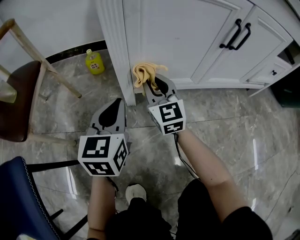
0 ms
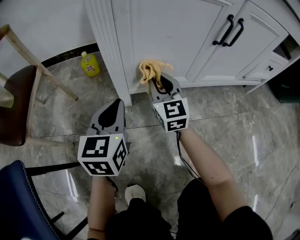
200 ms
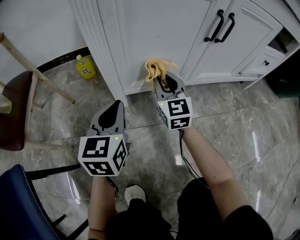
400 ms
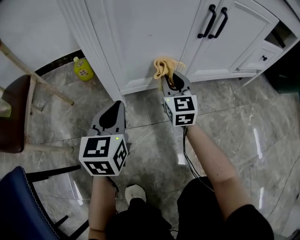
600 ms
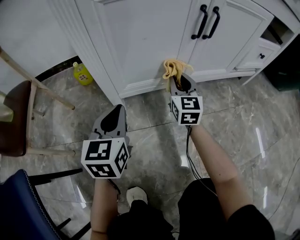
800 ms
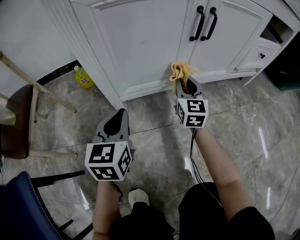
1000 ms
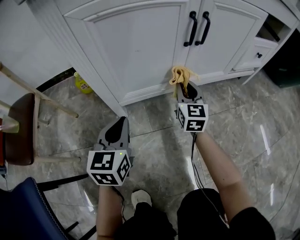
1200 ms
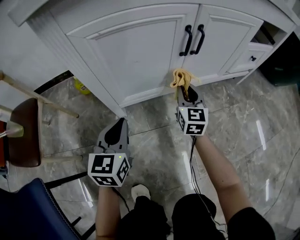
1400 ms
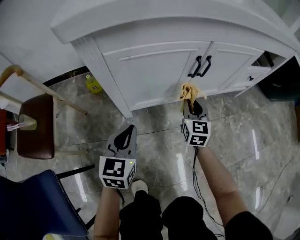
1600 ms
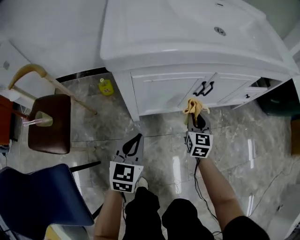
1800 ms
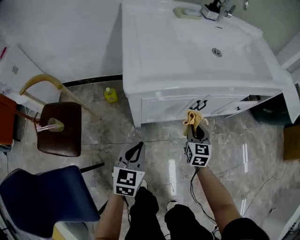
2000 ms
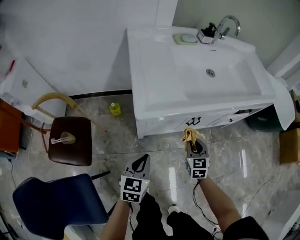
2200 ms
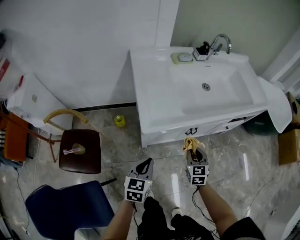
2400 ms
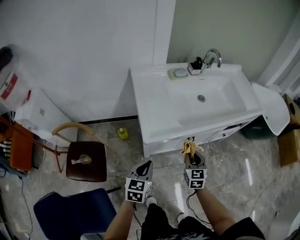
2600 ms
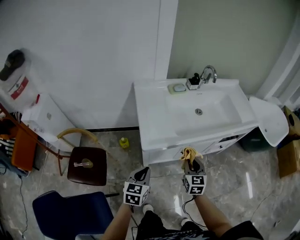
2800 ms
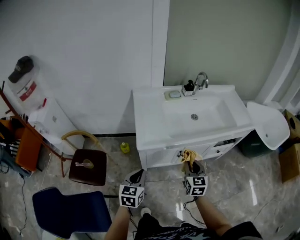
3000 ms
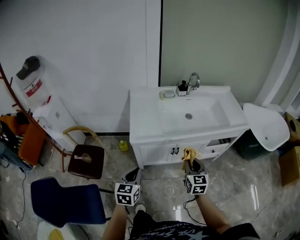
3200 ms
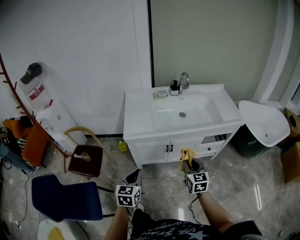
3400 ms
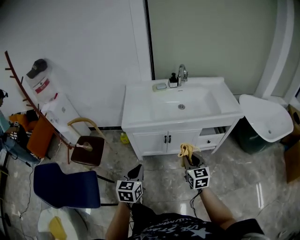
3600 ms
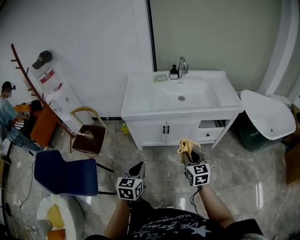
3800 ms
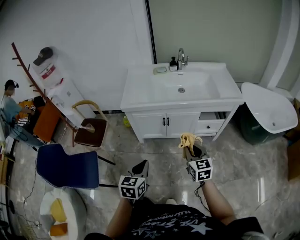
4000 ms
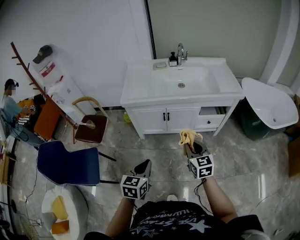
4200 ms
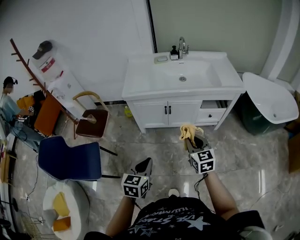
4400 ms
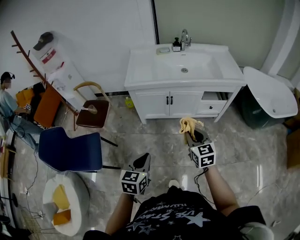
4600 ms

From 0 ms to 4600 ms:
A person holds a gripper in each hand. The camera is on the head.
From 0 ms to 1600 ms: The right gripper is displaced to the right by approximately 25 cm, and swivels roughly 30 degrees. The left gripper goes some 10 cm upward and to the right.
From 1600 ms to 3000 ms: Both grippers move upward, about 50 cm.
From 3000 ms to 4600 ms: The two grippers go approximately 35 cm backward and to the right. The right gripper changes its angle by some 20 degrees.

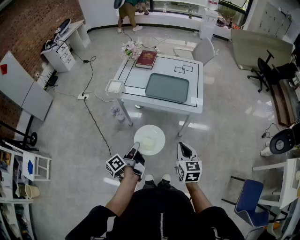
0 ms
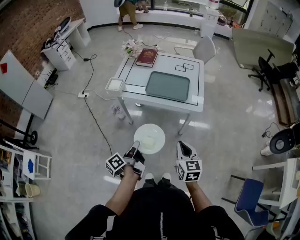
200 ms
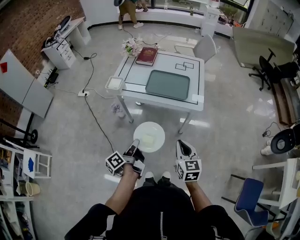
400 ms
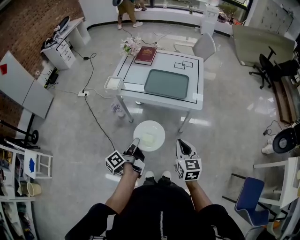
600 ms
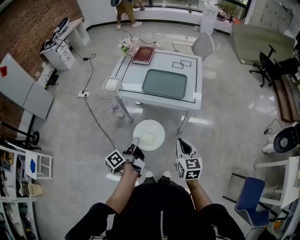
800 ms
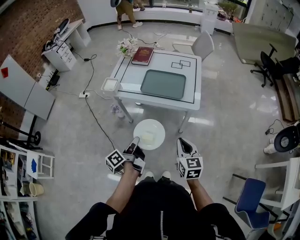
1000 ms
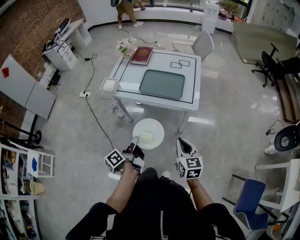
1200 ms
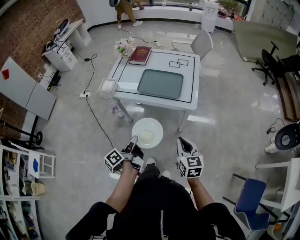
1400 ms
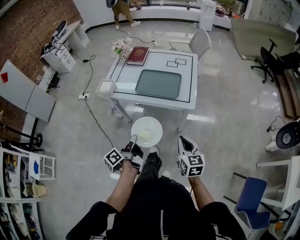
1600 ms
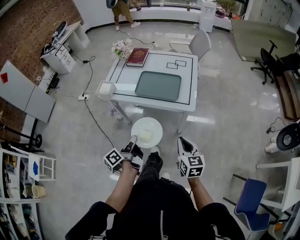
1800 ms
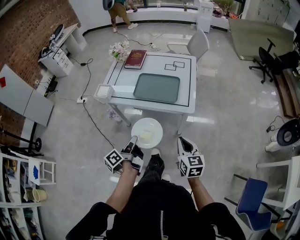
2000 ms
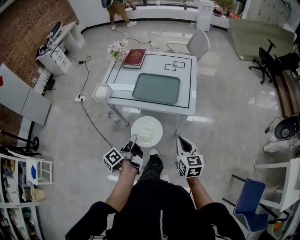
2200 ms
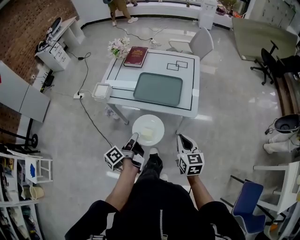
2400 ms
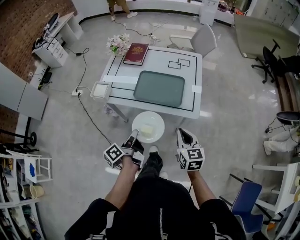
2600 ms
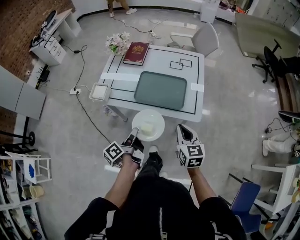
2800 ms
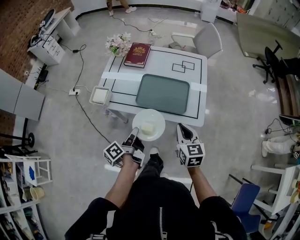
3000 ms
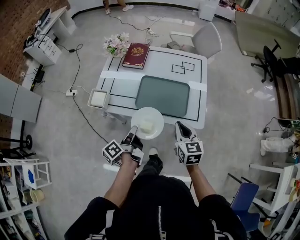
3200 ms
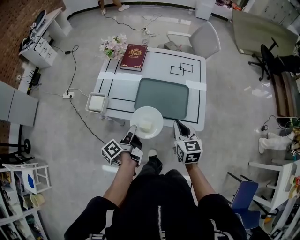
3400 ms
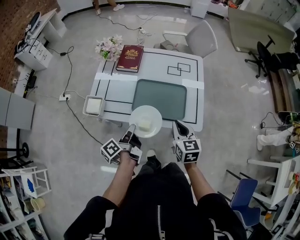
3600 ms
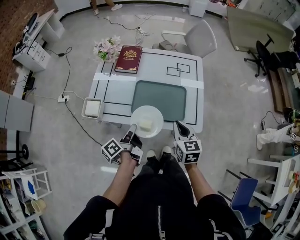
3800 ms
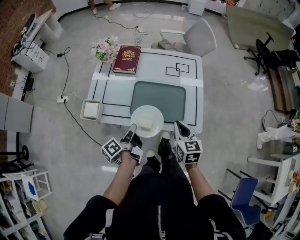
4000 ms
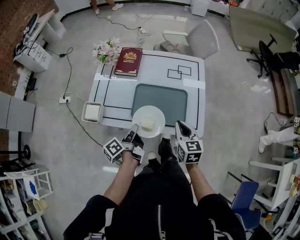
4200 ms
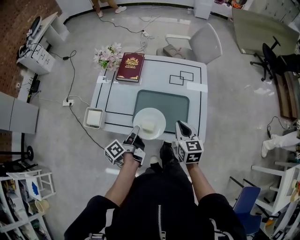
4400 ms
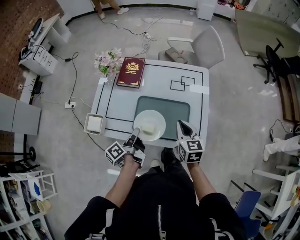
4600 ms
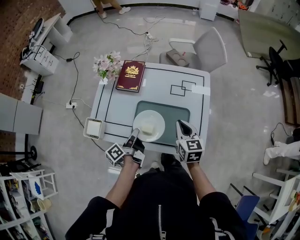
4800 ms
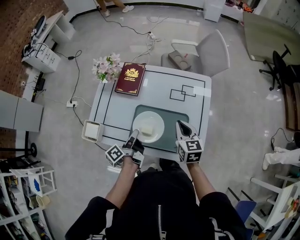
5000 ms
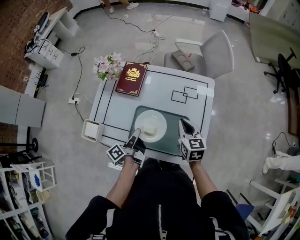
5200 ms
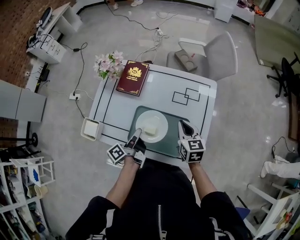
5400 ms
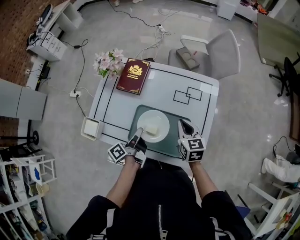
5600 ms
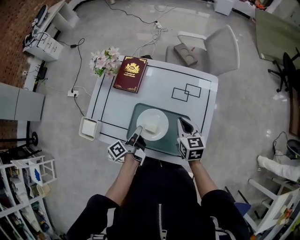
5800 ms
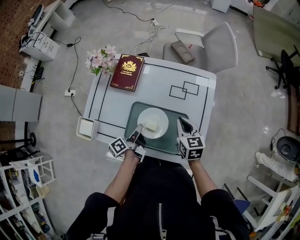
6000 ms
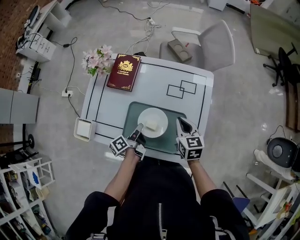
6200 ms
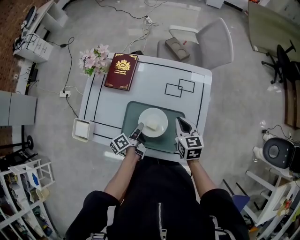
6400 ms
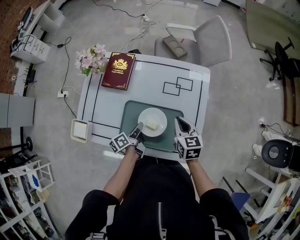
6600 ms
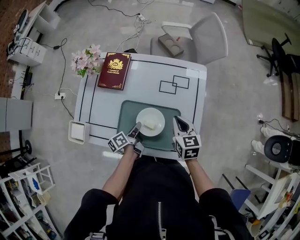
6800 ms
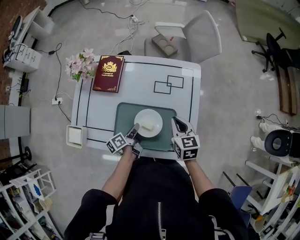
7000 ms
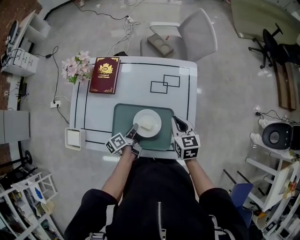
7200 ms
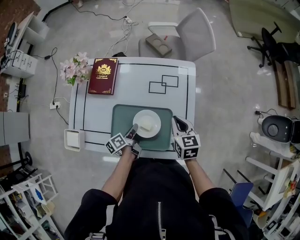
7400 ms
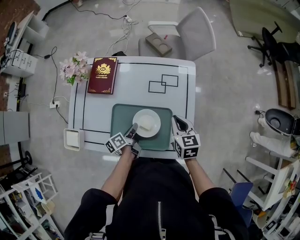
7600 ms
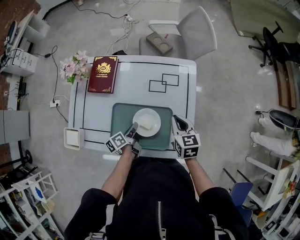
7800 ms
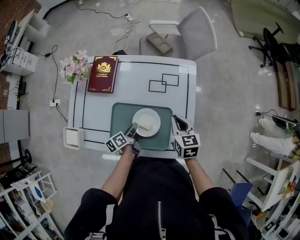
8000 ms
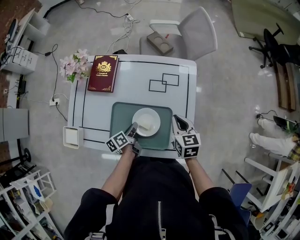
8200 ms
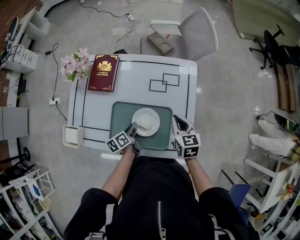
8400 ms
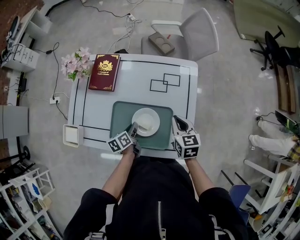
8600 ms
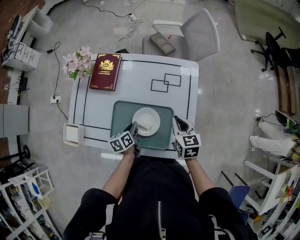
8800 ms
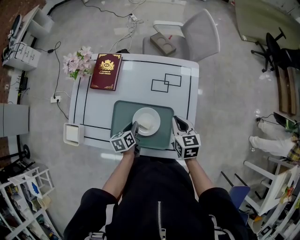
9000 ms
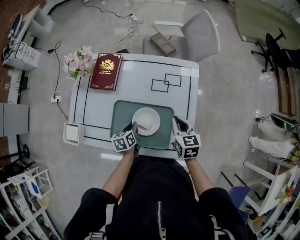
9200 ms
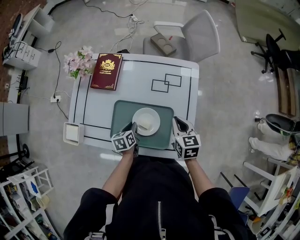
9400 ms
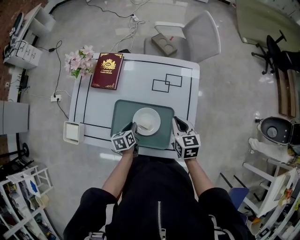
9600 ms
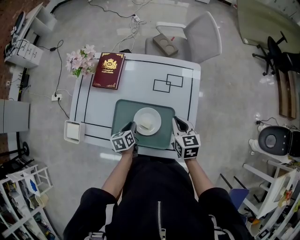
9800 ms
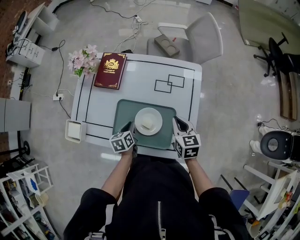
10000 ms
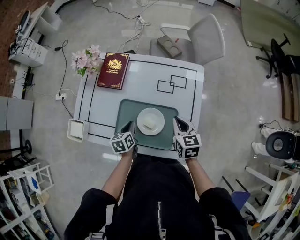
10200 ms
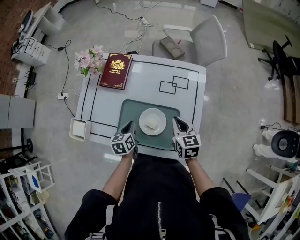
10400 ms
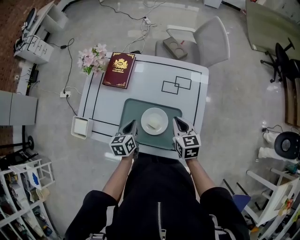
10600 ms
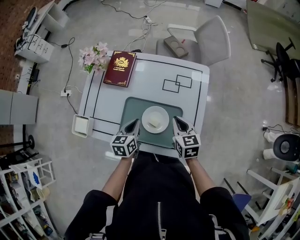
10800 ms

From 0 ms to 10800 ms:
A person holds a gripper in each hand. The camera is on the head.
From 0 ms to 1600 ms: Both grippers travel together to the right, some 10 cm.
From 1600 ms to 3000 ms: The grippers both shift forward by roughly 20 cm.
From 3000 ms to 4600 ms: Both grippers move forward, some 20 cm.
From 4600 ms to 6200 ms: The right gripper shifts roughly 15 cm forward and downward, while the left gripper shifts about 15 cm forward, downward and to the right.
From 6200 ms to 7800 ms: The right gripper goes about 5 cm to the right. Meanwhile the left gripper shifts by roughly 5 cm.
From 7800 ms to 9200 ms: The left gripper changes its angle by about 30 degrees.
From 9200 ms to 10800 ms: The left gripper moves upward, approximately 10 cm.

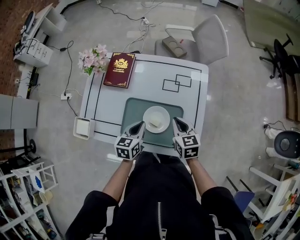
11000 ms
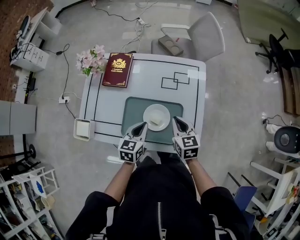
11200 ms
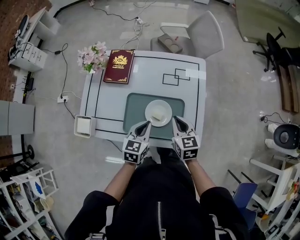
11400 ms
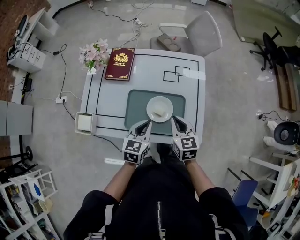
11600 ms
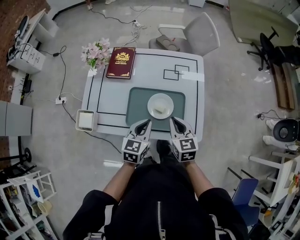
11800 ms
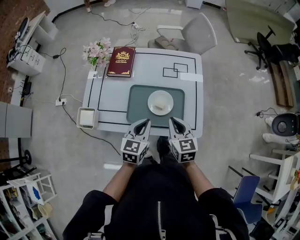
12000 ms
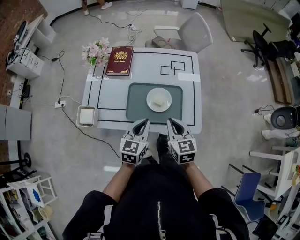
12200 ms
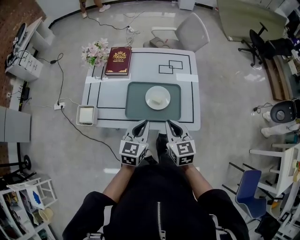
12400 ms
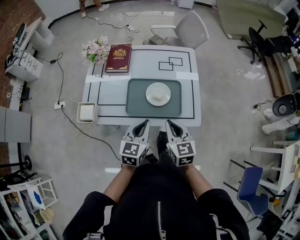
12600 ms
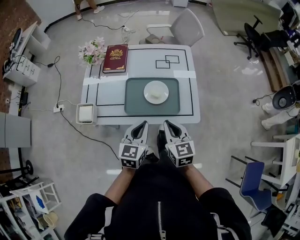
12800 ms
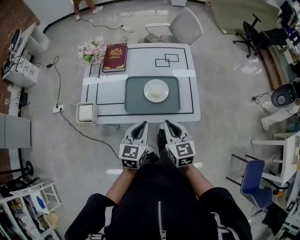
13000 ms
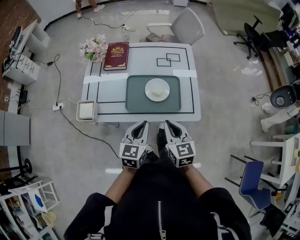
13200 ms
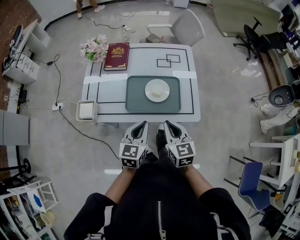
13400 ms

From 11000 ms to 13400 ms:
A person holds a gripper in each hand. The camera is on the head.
From 11000 ms to 12200 ms: The left gripper goes approximately 15 cm backward and upward. The right gripper moves backward, roughly 15 cm.
From 12200 ms to 13400 ms: Both grippers move backward, about 10 cm.

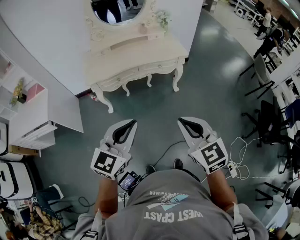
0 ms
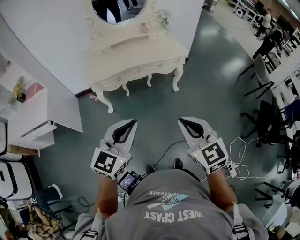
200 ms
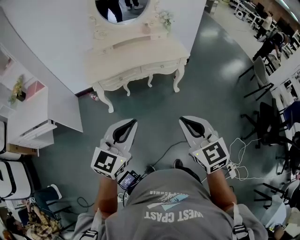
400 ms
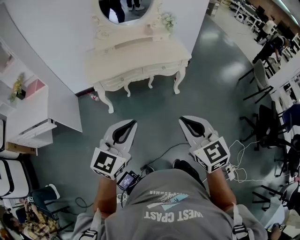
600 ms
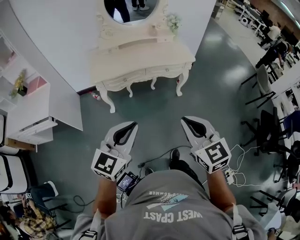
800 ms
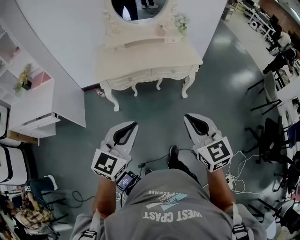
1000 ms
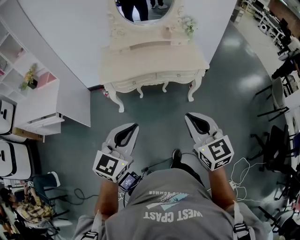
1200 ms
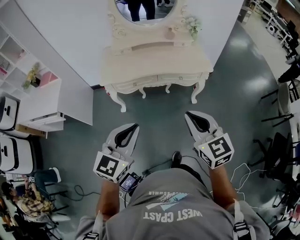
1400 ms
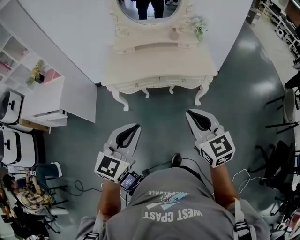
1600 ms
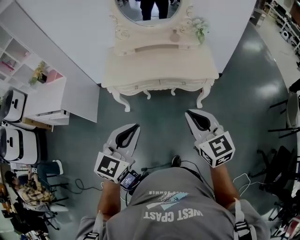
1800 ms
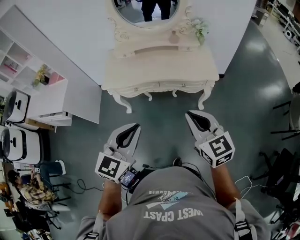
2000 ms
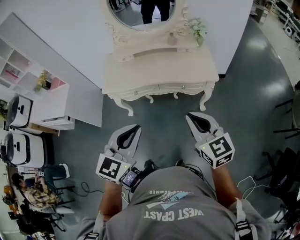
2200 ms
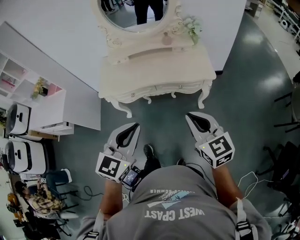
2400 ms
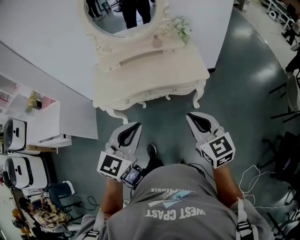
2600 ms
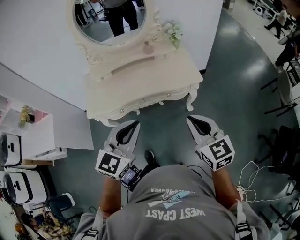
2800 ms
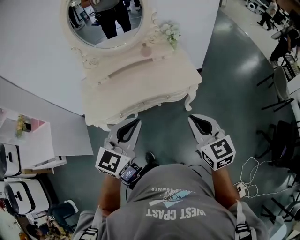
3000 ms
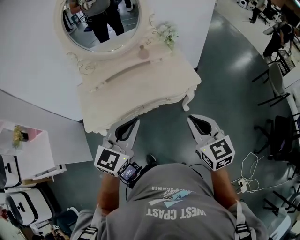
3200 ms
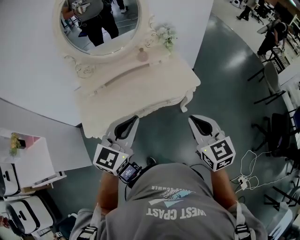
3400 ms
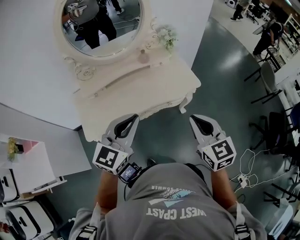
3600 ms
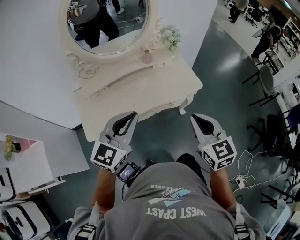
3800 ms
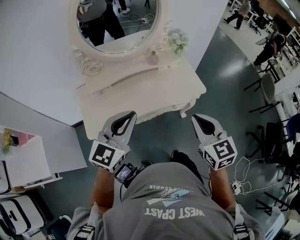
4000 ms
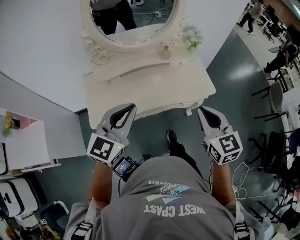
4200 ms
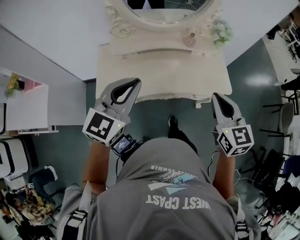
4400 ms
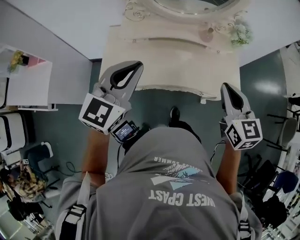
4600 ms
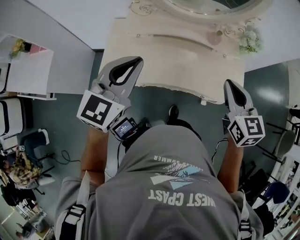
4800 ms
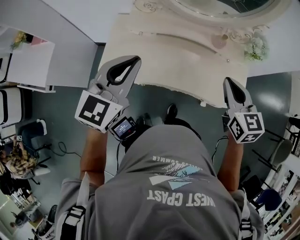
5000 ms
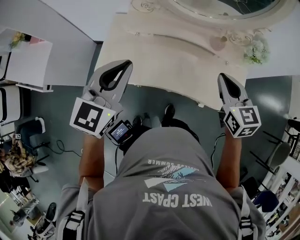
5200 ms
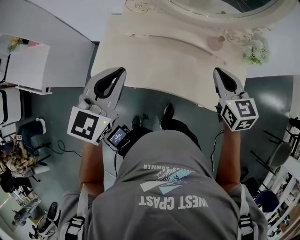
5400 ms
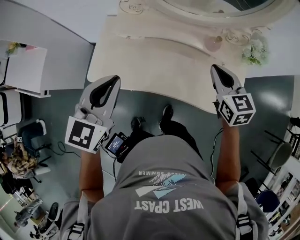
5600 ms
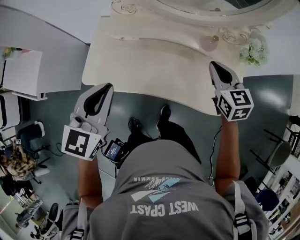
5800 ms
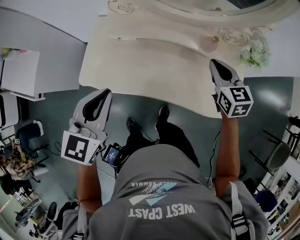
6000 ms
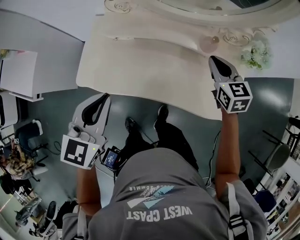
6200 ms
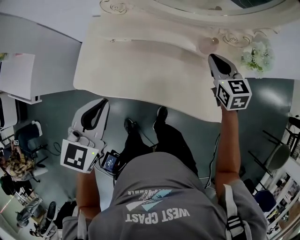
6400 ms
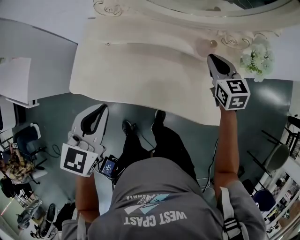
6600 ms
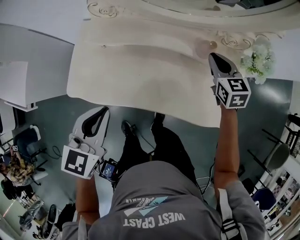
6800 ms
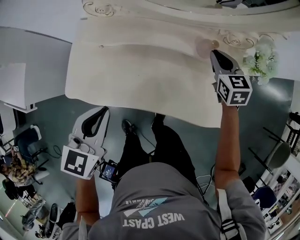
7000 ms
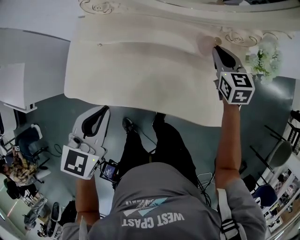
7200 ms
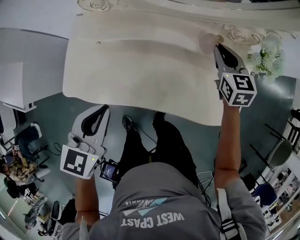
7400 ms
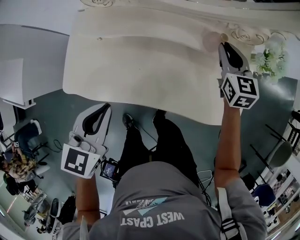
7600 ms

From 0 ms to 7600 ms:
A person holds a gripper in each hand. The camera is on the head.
From 0 ms to 1600 ms: The grippers both shift forward by about 20 cm.
From 1600 ms to 3000 ms: The left gripper moves forward, some 20 cm. Meanwhile the right gripper is displaced forward and to the right by about 15 cm.
From 3000 ms to 4600 ms: The left gripper is displaced to the left and forward by some 30 cm. The right gripper is displaced forward and to the left by approximately 30 cm.
From 4600 ms to 6000 ms: The right gripper heads forward and downward, covering roughly 30 cm, while the left gripper travels downward and forward by some 10 cm, and turns by some 30 degrees.
From 6000 ms to 7600 ms: The left gripper goes roughly 10 cm downward; the right gripper moves forward and downward, some 15 cm.
